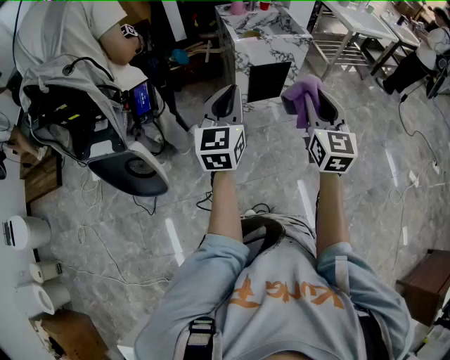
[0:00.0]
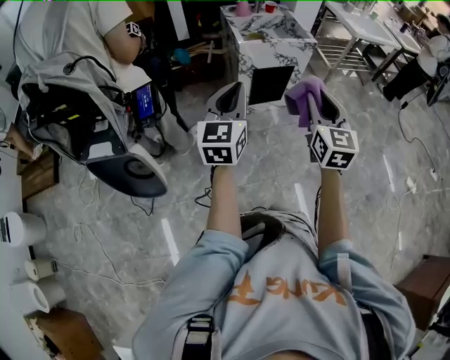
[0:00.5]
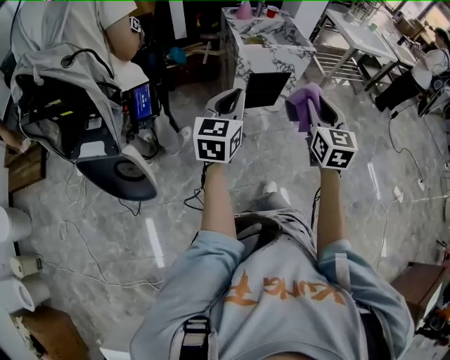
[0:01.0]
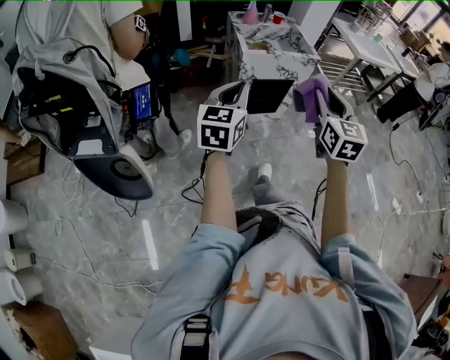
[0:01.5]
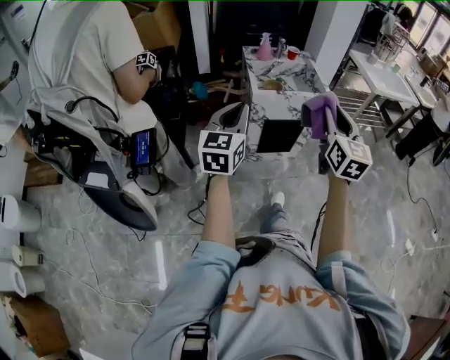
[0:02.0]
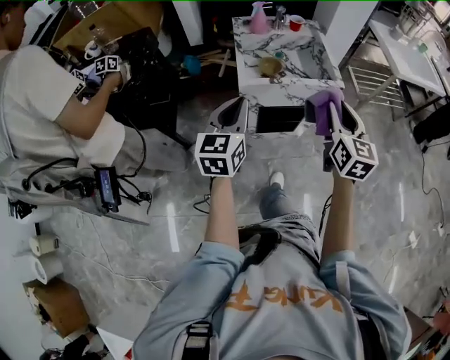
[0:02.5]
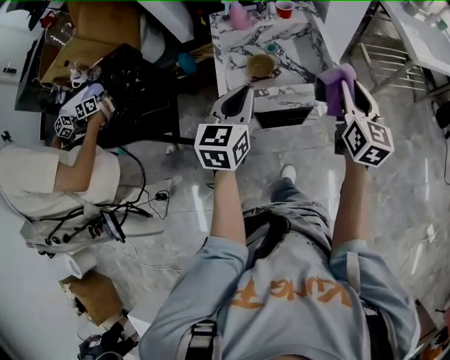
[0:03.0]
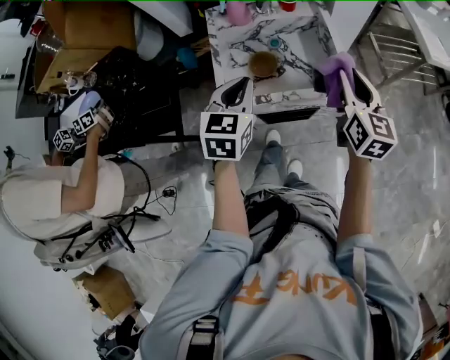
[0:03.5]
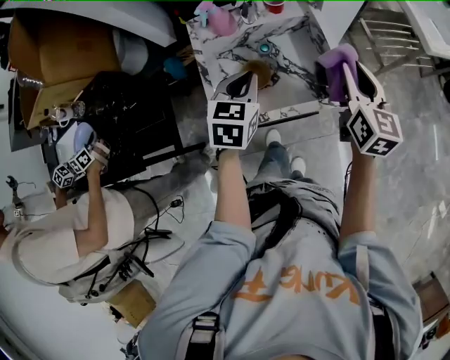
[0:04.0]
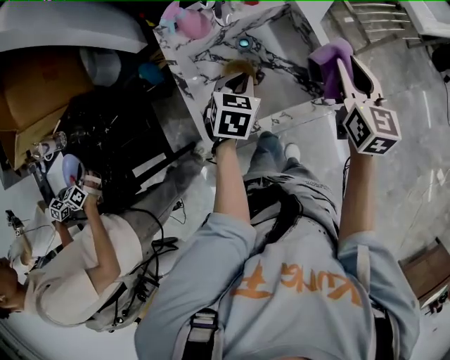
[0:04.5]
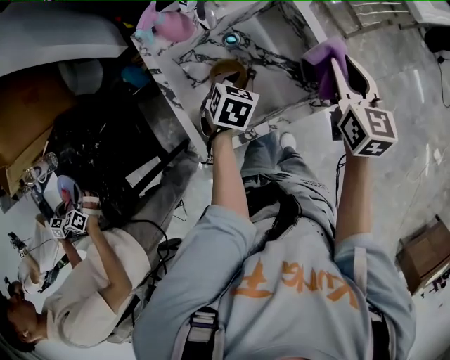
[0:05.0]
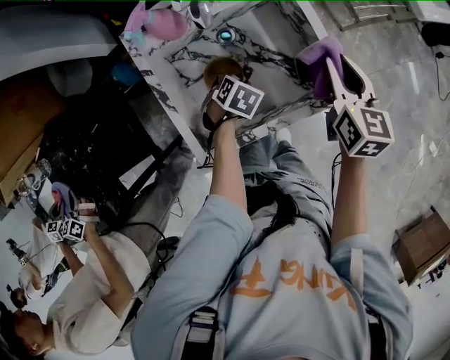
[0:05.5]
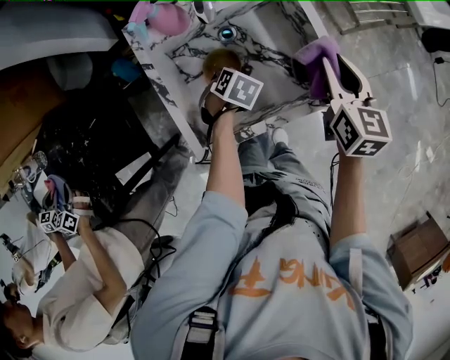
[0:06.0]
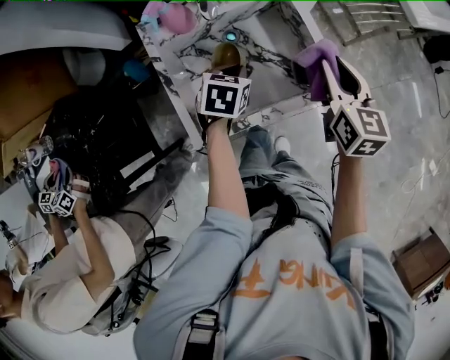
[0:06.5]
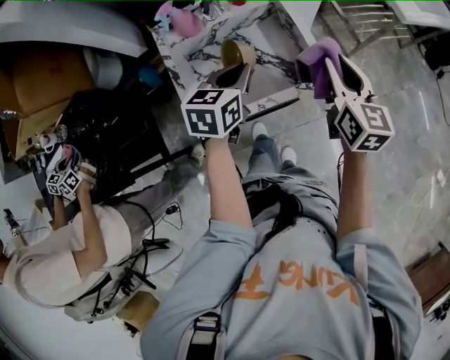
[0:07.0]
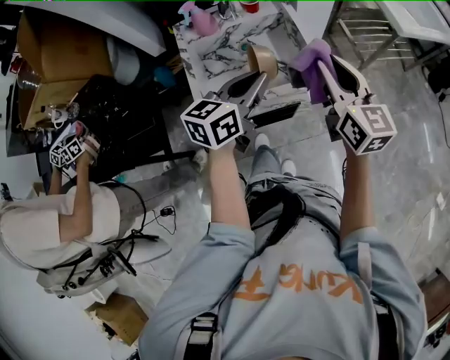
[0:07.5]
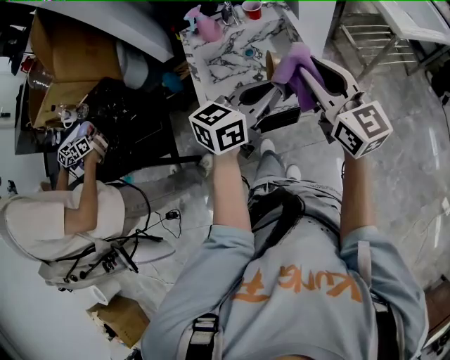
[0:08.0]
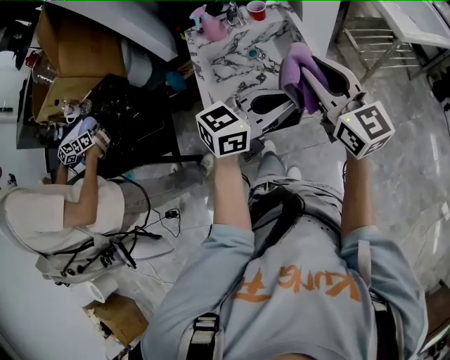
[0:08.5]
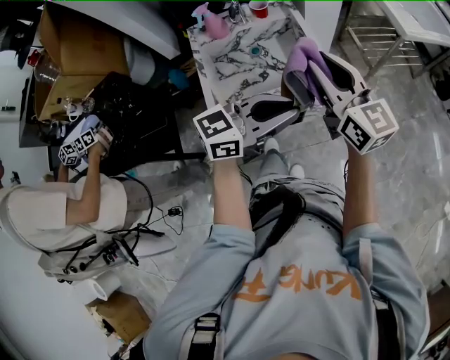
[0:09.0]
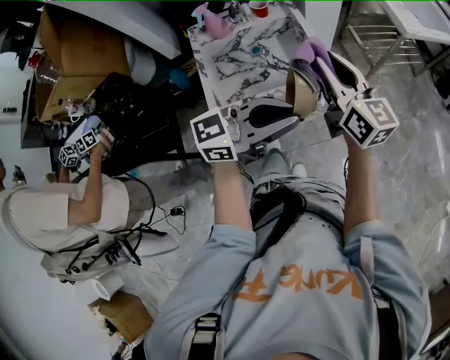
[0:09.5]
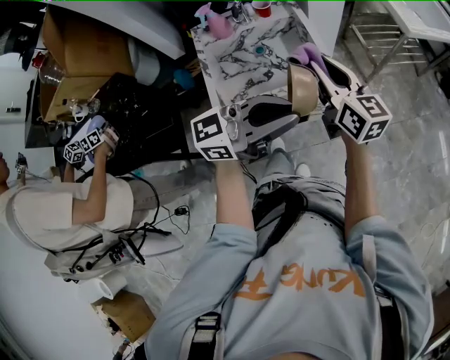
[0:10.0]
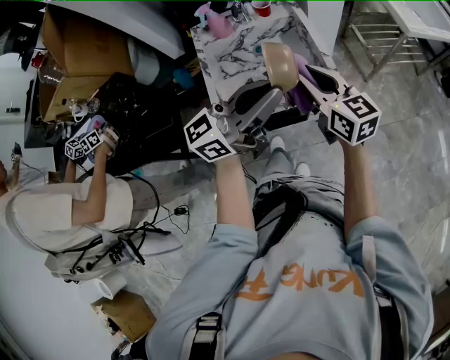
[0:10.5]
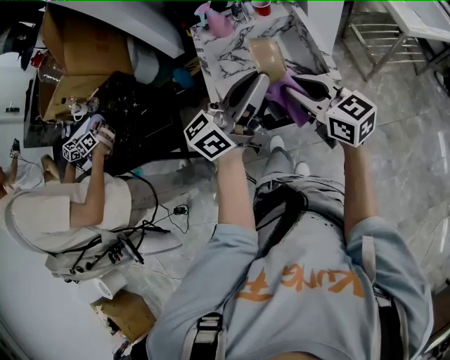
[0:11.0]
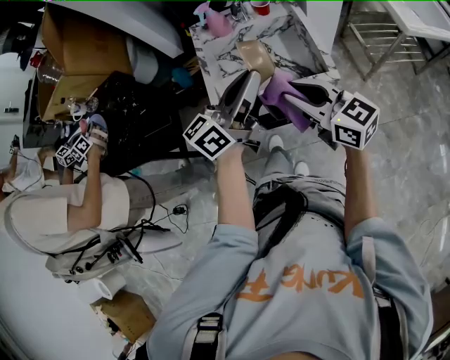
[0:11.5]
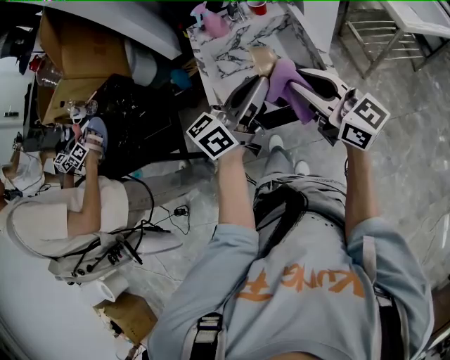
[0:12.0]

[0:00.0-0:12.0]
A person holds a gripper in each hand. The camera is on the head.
0:00.0 to 0:02.0: Both grippers move forward, some 20 cm.
0:02.0 to 0:04.0: The two grippers travel together, forward, about 50 cm. The left gripper points its fingers roughly 30 degrees further downward.
0:04.0 to 0:06.0: The right gripper moves downward, roughly 10 cm. Meanwhile the left gripper is displaced downward by approximately 25 cm, and points its fingers approximately 40 degrees further downward.
0:06.0 to 0:08.0: The left gripper moves upward, some 30 cm, and points its fingers approximately 60 degrees further upward. Meanwhile the right gripper moves upward, some 15 cm, and swivels roughly 40 degrees.
0:08.0 to 0:10.0: The left gripper heads backward and upward, covering roughly 10 cm, and changes its angle by approximately 40 degrees.
0:10.0 to 0:12.0: The right gripper moves about 10 cm, and rotates about 30 degrees, while the left gripper changes place by roughly 10 cm, and swivels roughly 30 degrees.

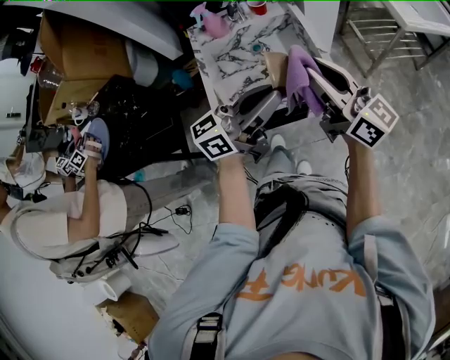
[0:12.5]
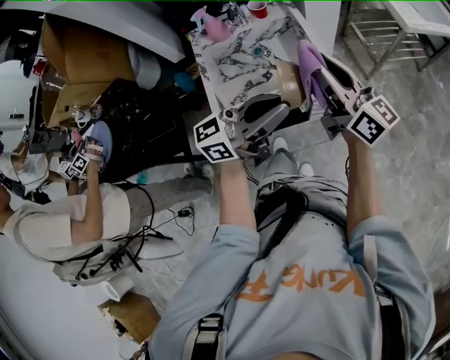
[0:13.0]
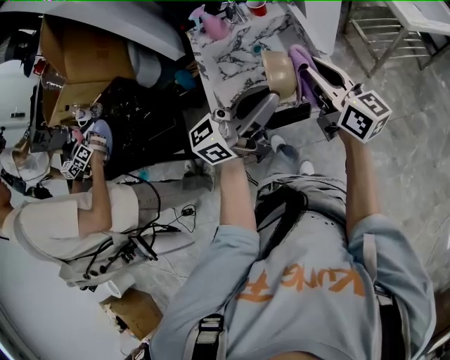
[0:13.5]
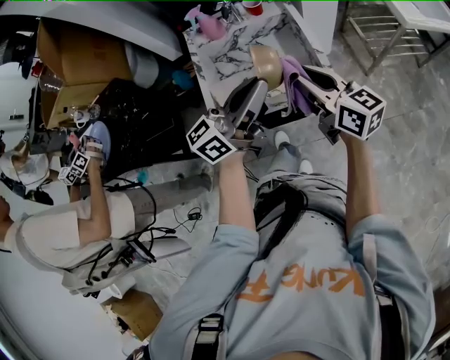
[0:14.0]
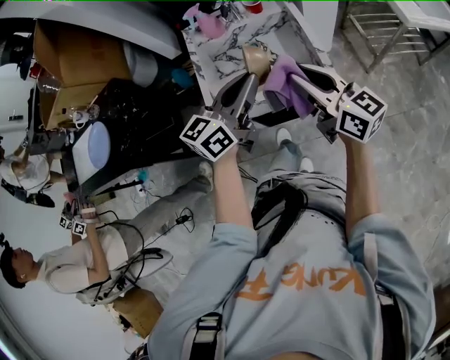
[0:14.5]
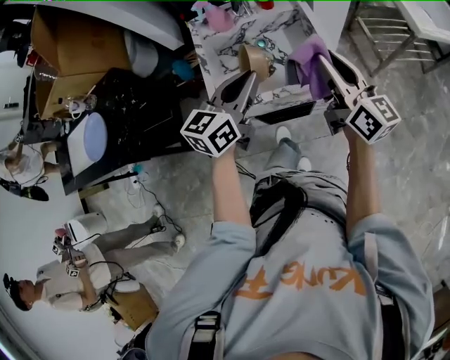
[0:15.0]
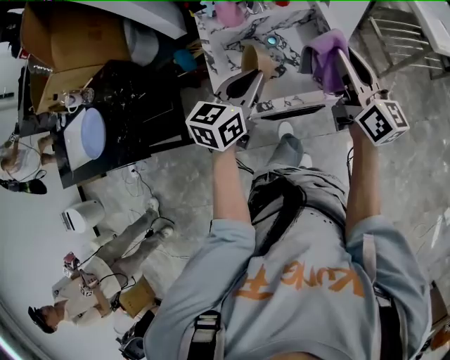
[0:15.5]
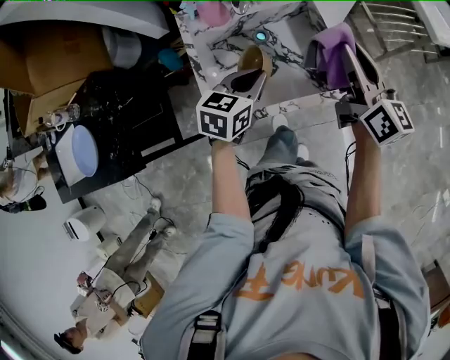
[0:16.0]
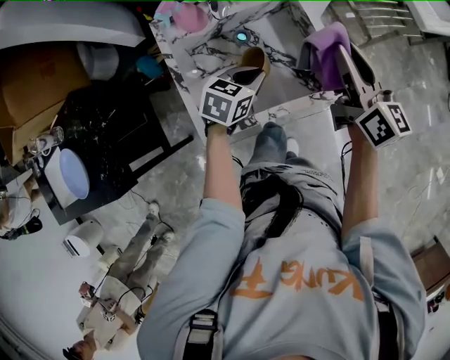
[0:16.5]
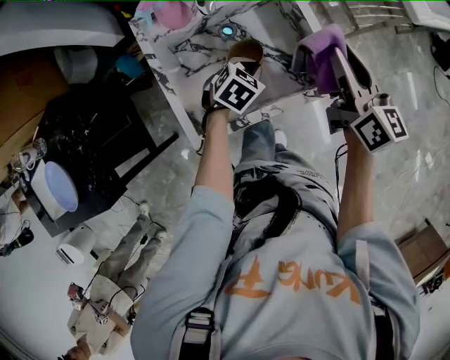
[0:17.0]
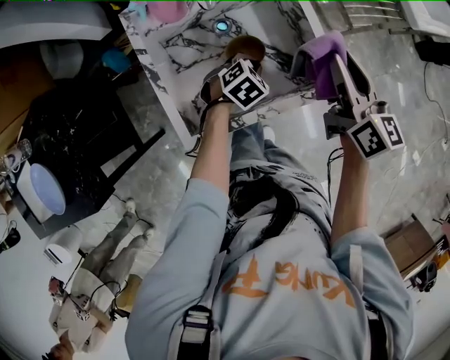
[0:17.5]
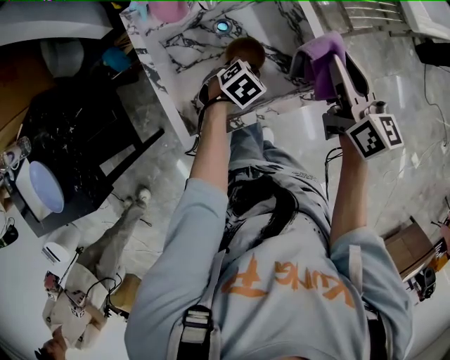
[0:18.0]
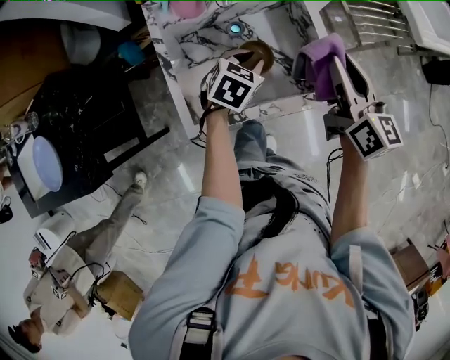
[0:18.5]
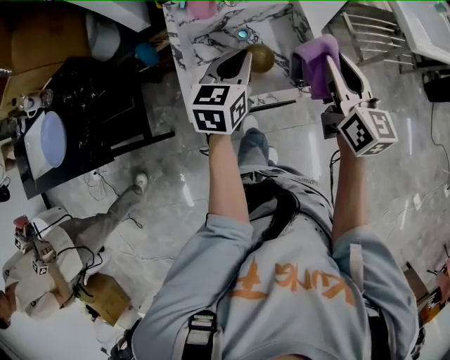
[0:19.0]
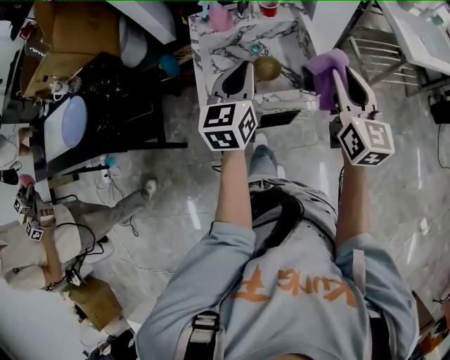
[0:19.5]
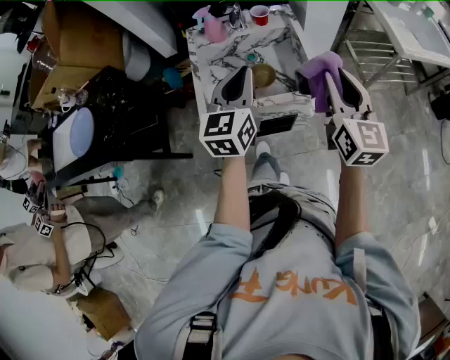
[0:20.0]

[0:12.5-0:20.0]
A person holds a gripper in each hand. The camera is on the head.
0:12.5 to 0:14.5: The left gripper heads forward, covering some 5 cm, and swivels approximately 30 degrees. Meanwhile the right gripper goes about 5 cm downward.
0:14.5 to 0:16.5: The left gripper travels downward and forward by about 25 cm, and points its fingers roughly 40 degrees further downward; the right gripper heads forward, covering roughly 15 cm, and rotates roughly 30 degrees.
0:16.5 to 0:18.0: The left gripper goes roughly 10 cm downward, and swivels some 30 degrees.
0:18.0 to 0:20.0: The left gripper goes roughly 35 cm upward, and angles its fingers upward, by about 50 degrees. Meanwhile the right gripper moves approximately 15 cm, and turns by roughly 20 degrees.

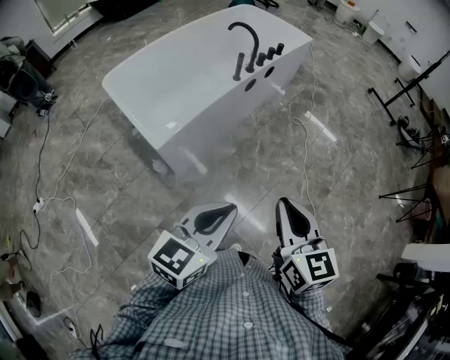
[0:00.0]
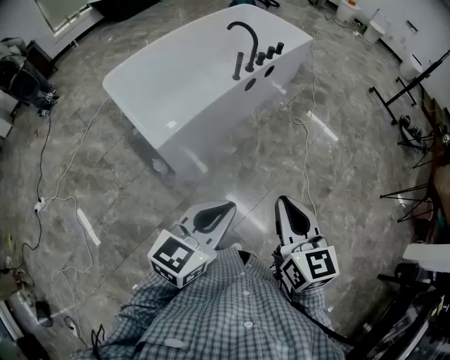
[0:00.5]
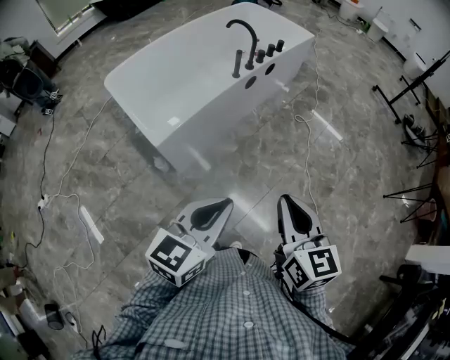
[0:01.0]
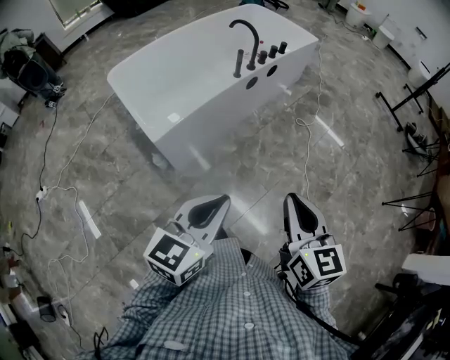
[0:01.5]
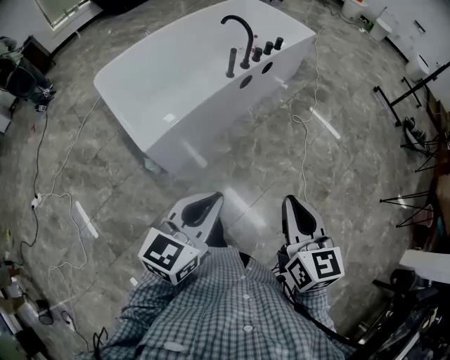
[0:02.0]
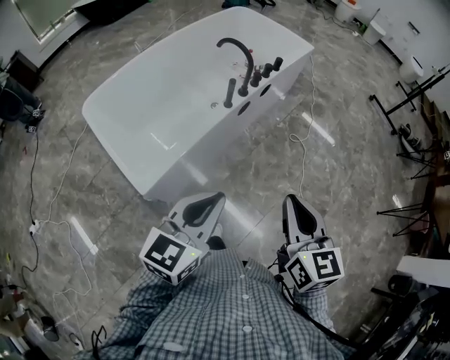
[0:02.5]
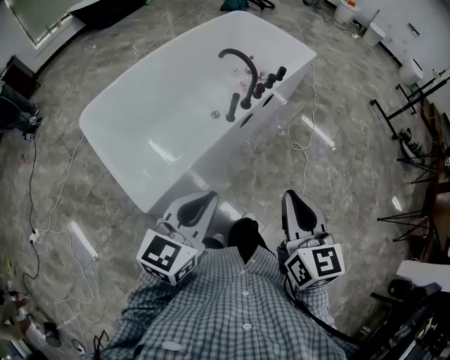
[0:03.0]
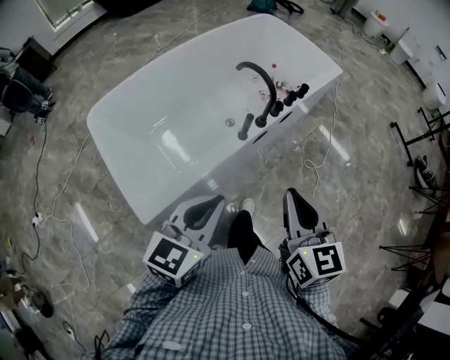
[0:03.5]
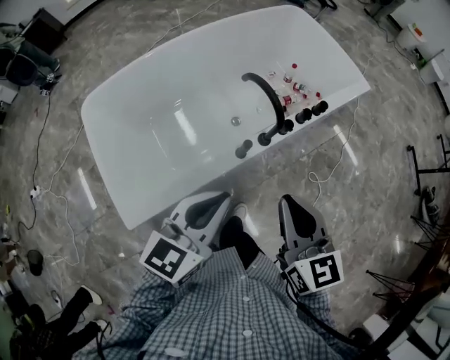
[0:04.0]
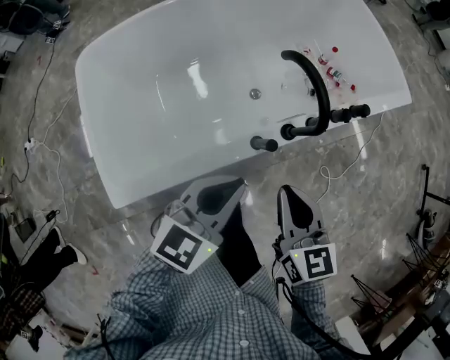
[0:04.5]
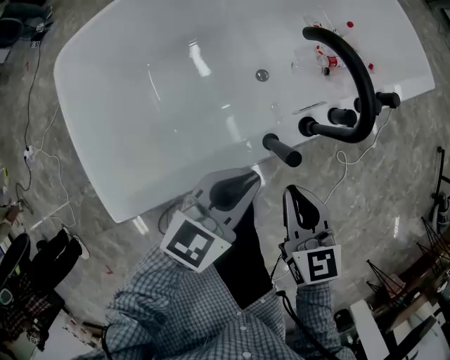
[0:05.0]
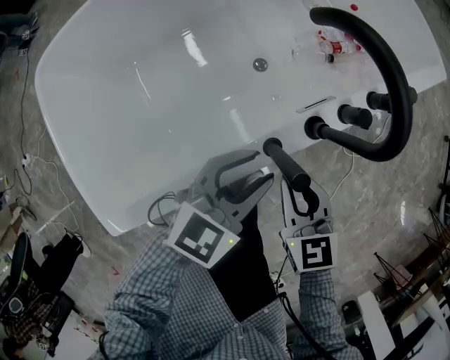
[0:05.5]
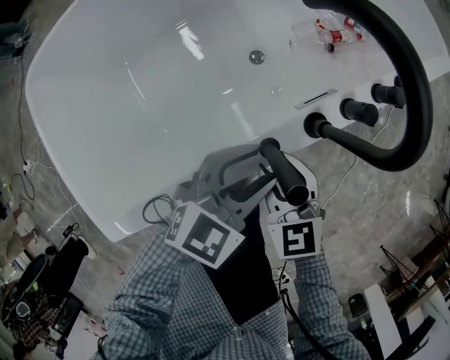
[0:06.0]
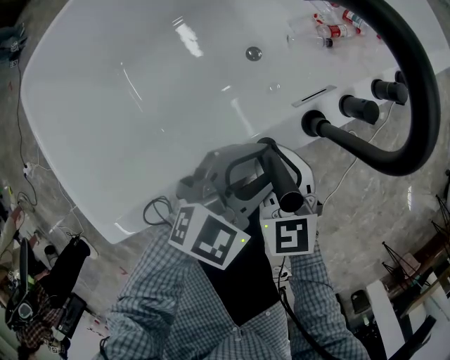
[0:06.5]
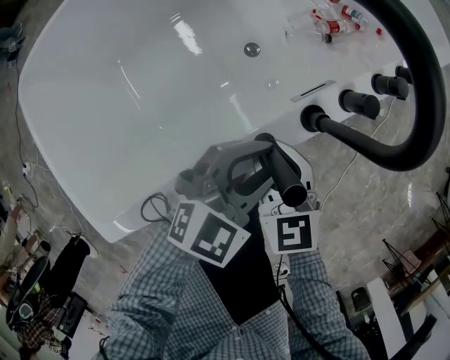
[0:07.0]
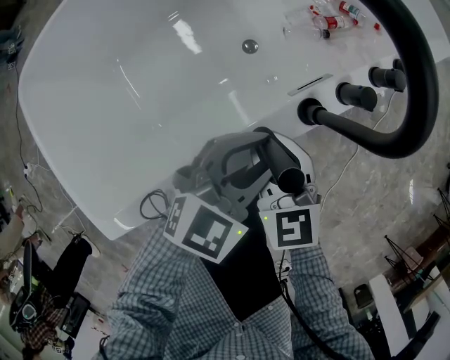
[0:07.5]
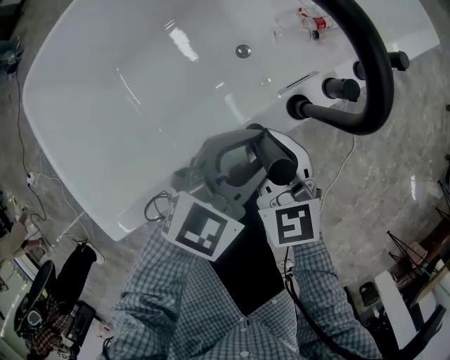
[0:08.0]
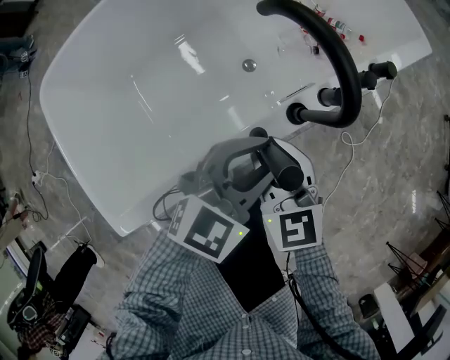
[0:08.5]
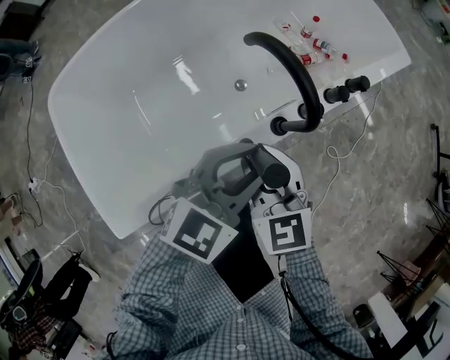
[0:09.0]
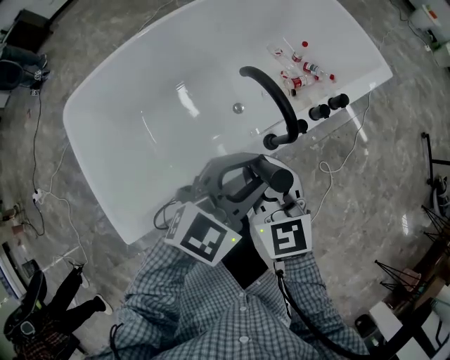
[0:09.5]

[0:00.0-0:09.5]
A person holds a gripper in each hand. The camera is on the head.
0:00.0 to 0:02.0: The left gripper is displaced forward by approximately 10 cm. Meanwhile the right gripper goes roughly 10 cm forward and to the right.
0:02.0 to 0:04.0: The two grippers travel together, forward, some 60 cm. The right gripper changes its angle by some 20 degrees.
0:04.0 to 0:05.5: The right gripper shifts roughly 35 cm downward. Meanwhile the left gripper goes about 35 cm downward and forward, and opens up.
0:05.5 to 0:07.5: The left gripper moves about 5 cm. The right gripper changes place by approximately 5 cm, and opens.
0:07.5 to 0:09.5: Both grippers travel together upward, approximately 25 cm.
